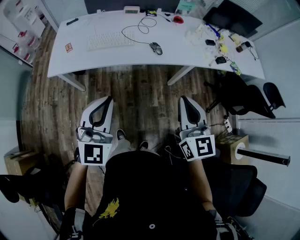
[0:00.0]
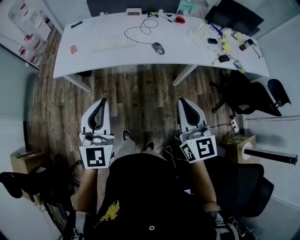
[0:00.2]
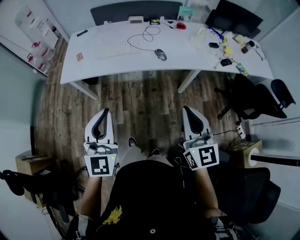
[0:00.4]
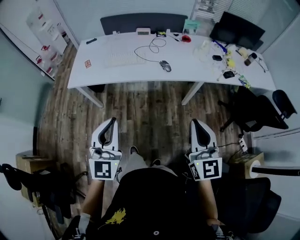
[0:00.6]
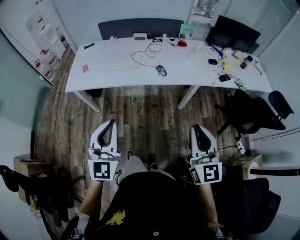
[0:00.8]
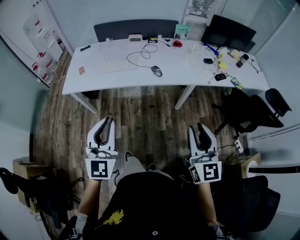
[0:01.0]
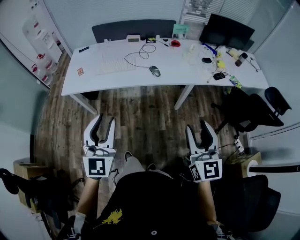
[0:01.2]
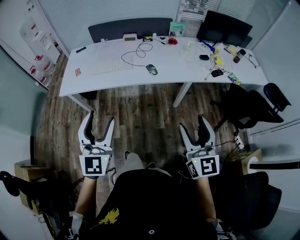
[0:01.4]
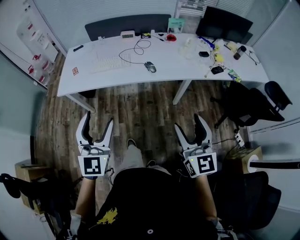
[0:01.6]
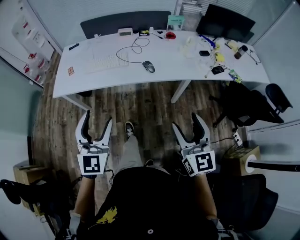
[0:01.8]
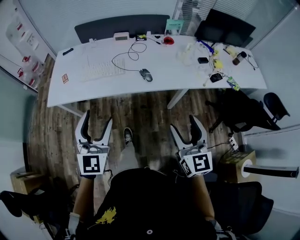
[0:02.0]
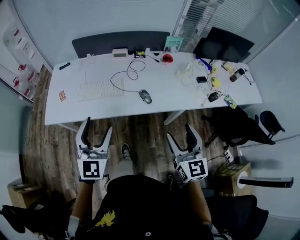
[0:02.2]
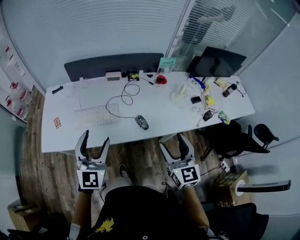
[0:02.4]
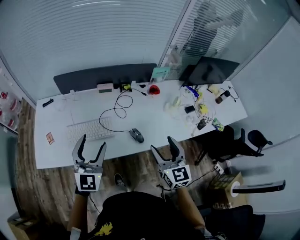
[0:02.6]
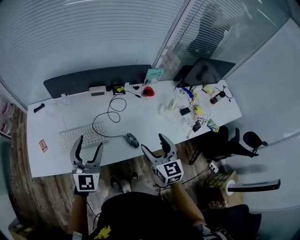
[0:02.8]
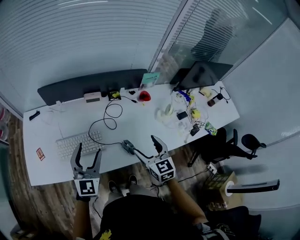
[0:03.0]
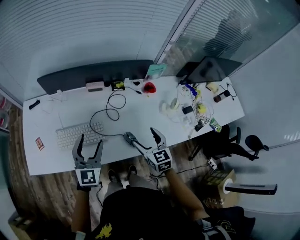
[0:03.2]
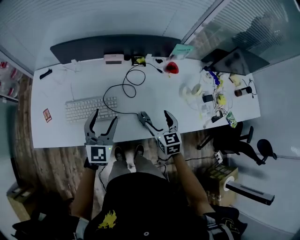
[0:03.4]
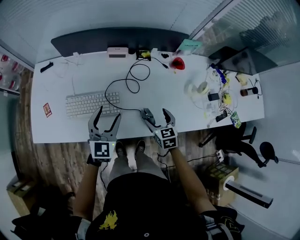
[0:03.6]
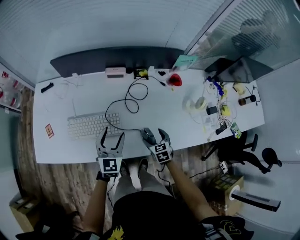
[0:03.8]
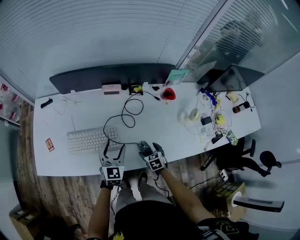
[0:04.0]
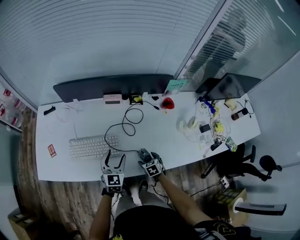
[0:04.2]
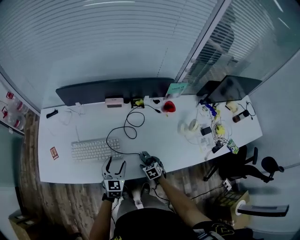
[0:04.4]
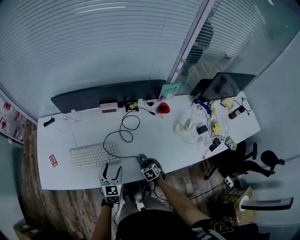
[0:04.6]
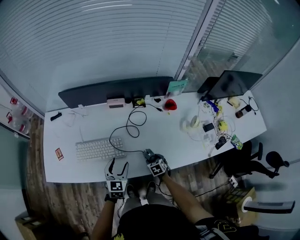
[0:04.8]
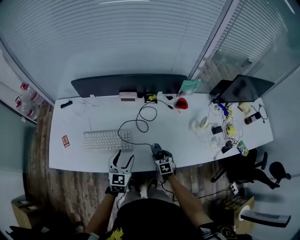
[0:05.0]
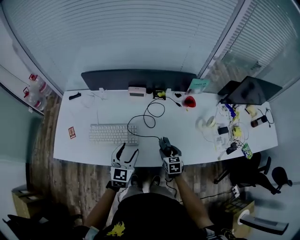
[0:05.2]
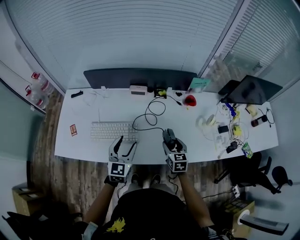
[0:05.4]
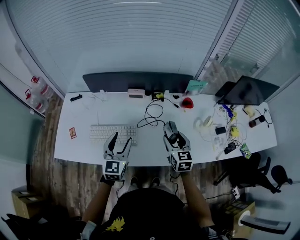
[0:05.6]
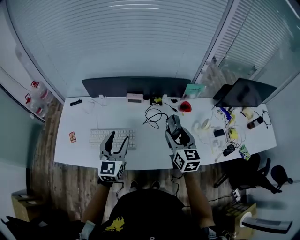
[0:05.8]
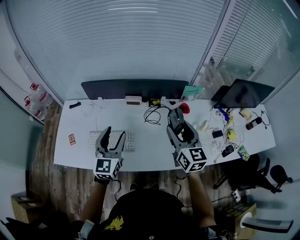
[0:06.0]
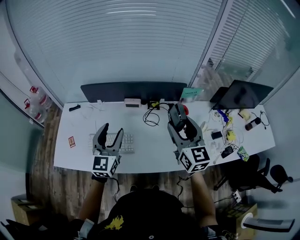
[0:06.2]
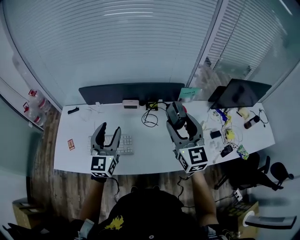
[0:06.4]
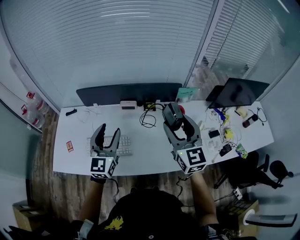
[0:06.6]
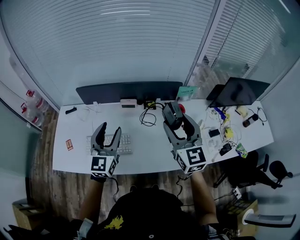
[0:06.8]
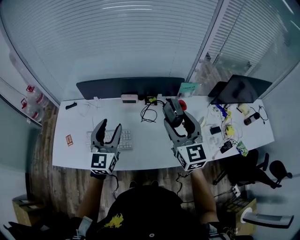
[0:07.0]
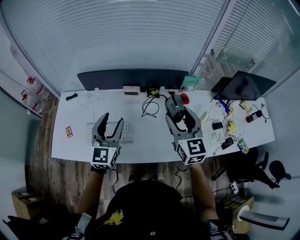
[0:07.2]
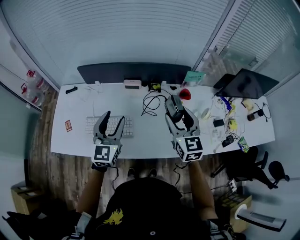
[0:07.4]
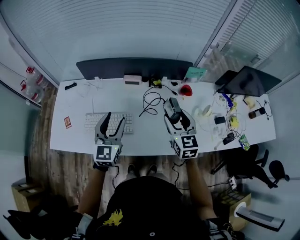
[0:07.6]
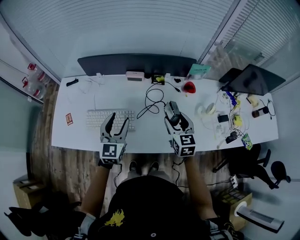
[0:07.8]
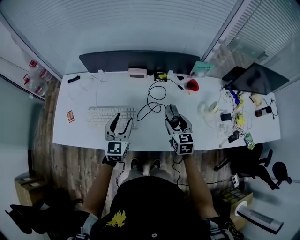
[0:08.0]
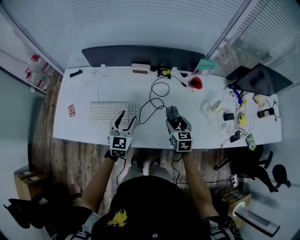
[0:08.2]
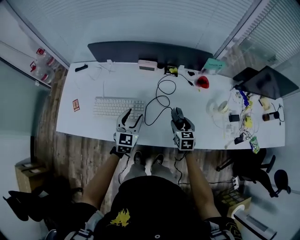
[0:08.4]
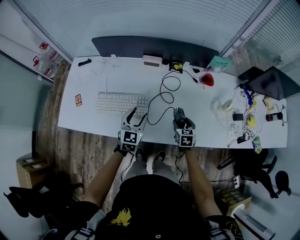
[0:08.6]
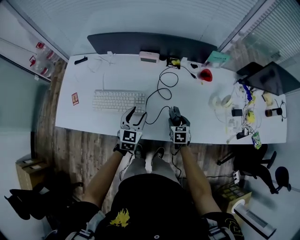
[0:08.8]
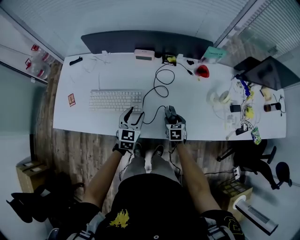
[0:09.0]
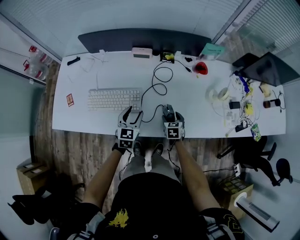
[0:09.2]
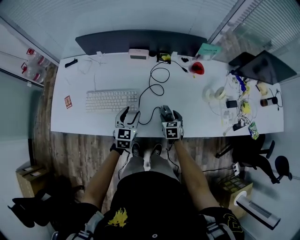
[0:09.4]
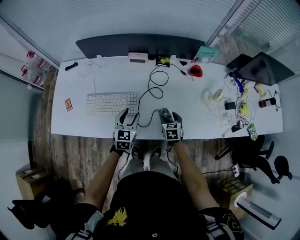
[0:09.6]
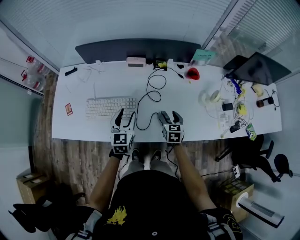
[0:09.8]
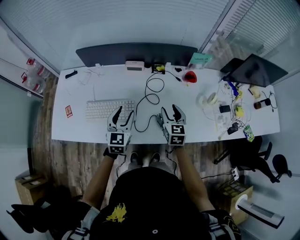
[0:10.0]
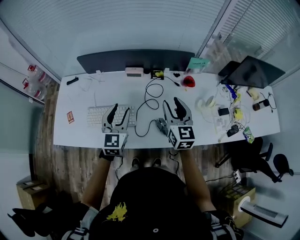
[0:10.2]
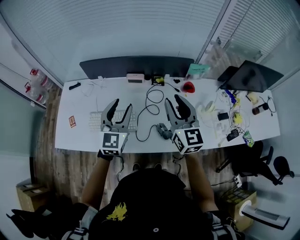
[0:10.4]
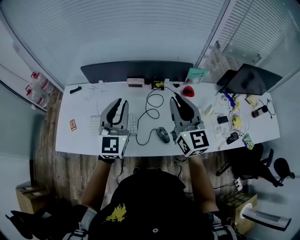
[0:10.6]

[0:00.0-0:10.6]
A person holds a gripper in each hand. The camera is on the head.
0:00.0 to 0:01.6: The left gripper travels to the right and backward by about 10 cm, and opens. Meanwhile the right gripper is displaced to the right and backward by roughly 15 cm, and opens.
0:01.6 to 0:03.0: The two grippers travel together, forward, approximately 60 cm. The right gripper turns by roughly 20 degrees.
0:03.0 to 0:04.6: The right gripper heads downward, covering about 35 cm, and tips its fingers downward by roughly 40 degrees. Meanwhile the left gripper is displaced downward by some 20 cm, and rotates approximately 20 degrees.
0:04.6 to 0:06.0: The left gripper goes about 25 cm upward, and rotates approximately 20 degrees. The right gripper moves upward, roughly 50 cm, and tips its fingers upward by some 50 degrees.
0:06.0 to 0:07.6: The left gripper travels downward by some 5 cm. The right gripper shifts about 10 cm downward.
0:07.6 to 0:09.0: The left gripper heads downward, covering about 20 cm; the right gripper shifts some 35 cm downward, and tips its fingers downward by about 30 degrees.
0:09.0 to 0:10.6: The right gripper moves upward, about 50 cm, tilts its fingers approximately 60 degrees upward, and closes; the left gripper shifts some 30 cm upward, rotates some 30 degrees, and closes.

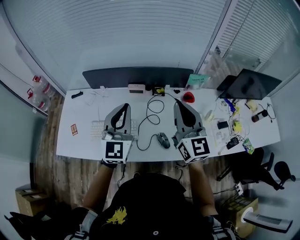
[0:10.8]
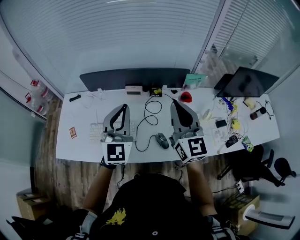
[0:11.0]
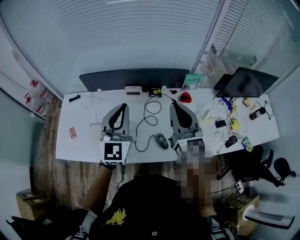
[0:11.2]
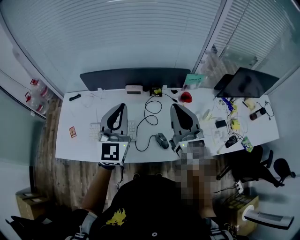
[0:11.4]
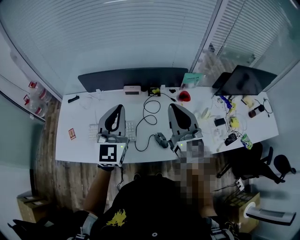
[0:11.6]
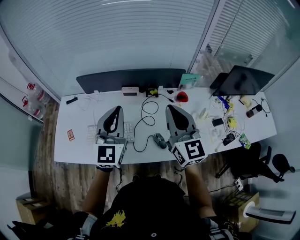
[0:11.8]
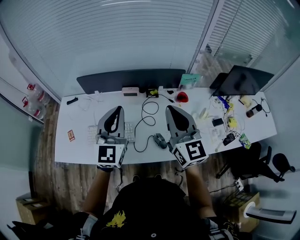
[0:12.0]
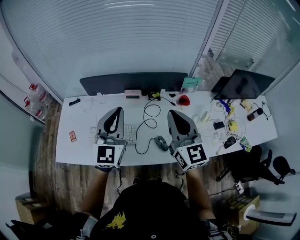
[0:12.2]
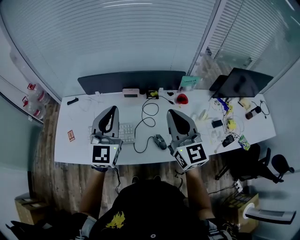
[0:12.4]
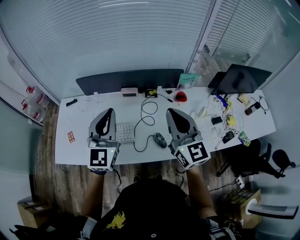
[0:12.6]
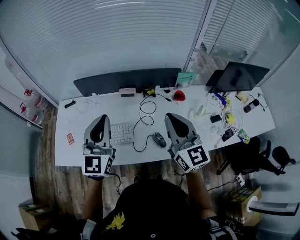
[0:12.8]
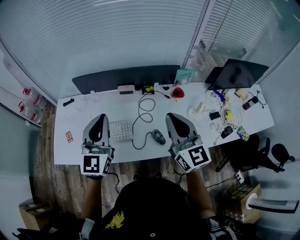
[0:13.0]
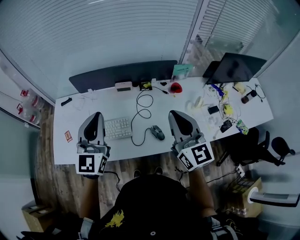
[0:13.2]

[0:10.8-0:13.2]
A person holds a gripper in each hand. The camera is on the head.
0:10.8 to 0:12.0: The grippers move only a little.
0:12.0 to 0:13.2: The right gripper moves about 5 cm. The left gripper goes about 5 cm to the left.

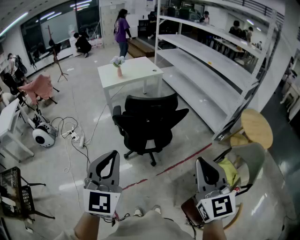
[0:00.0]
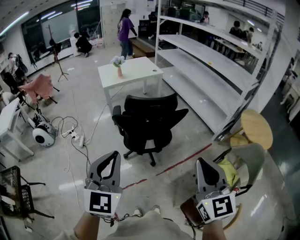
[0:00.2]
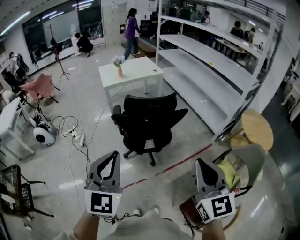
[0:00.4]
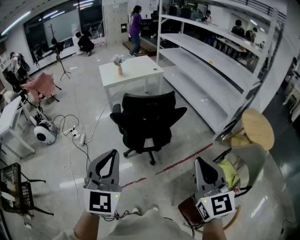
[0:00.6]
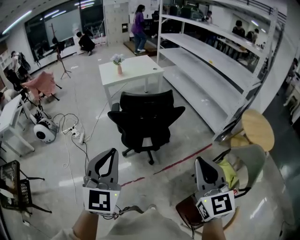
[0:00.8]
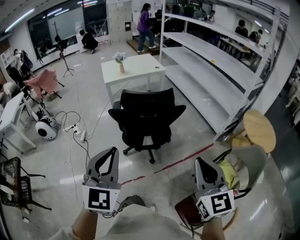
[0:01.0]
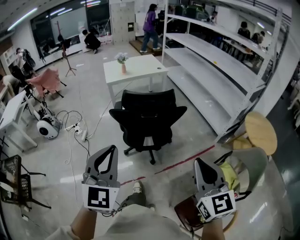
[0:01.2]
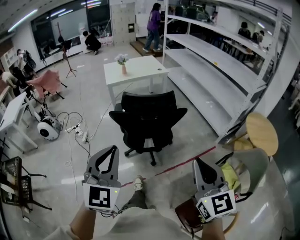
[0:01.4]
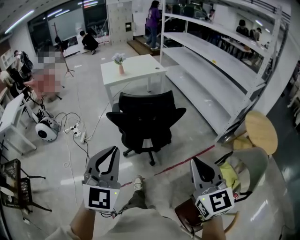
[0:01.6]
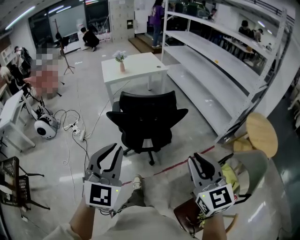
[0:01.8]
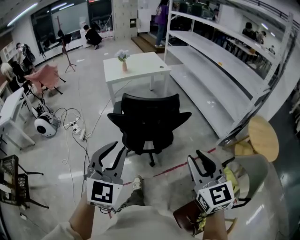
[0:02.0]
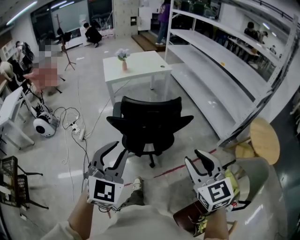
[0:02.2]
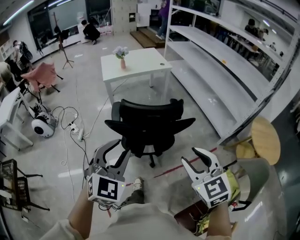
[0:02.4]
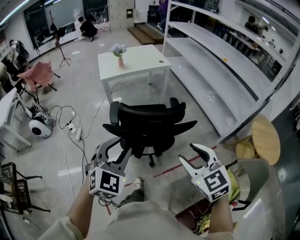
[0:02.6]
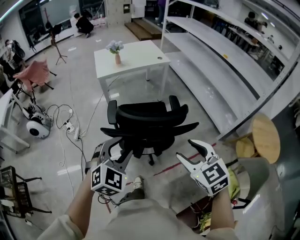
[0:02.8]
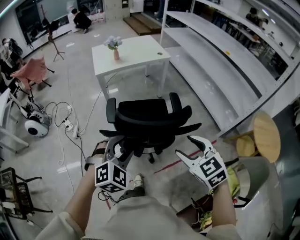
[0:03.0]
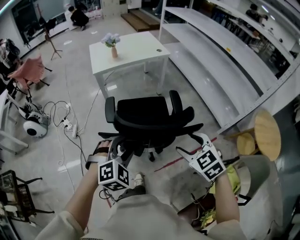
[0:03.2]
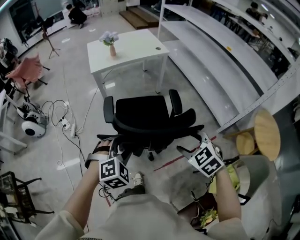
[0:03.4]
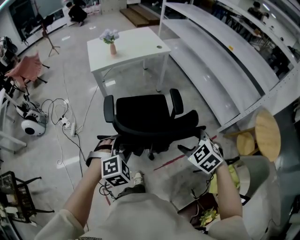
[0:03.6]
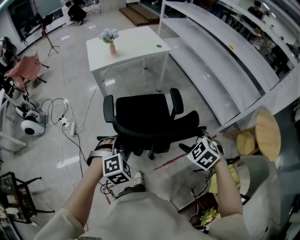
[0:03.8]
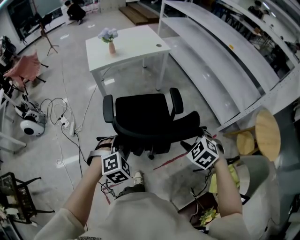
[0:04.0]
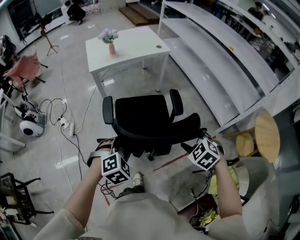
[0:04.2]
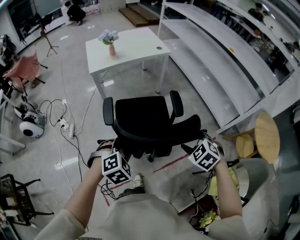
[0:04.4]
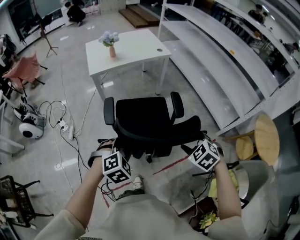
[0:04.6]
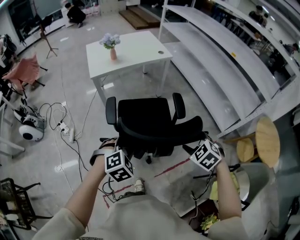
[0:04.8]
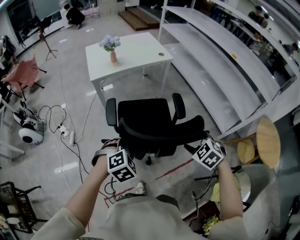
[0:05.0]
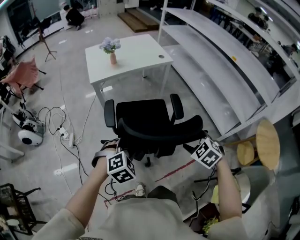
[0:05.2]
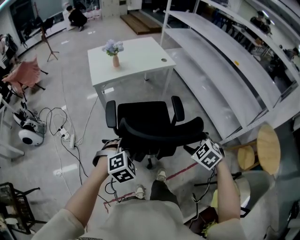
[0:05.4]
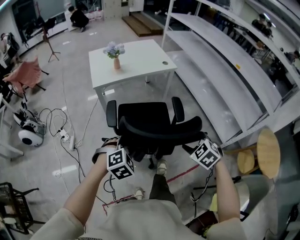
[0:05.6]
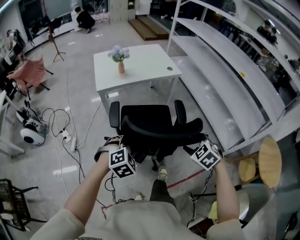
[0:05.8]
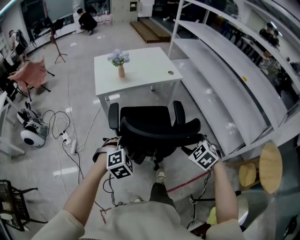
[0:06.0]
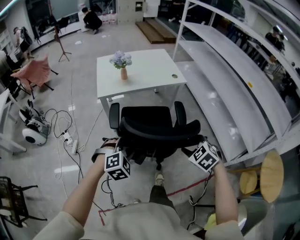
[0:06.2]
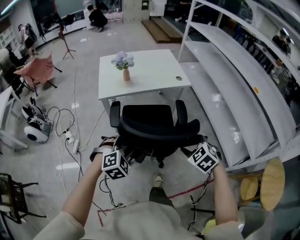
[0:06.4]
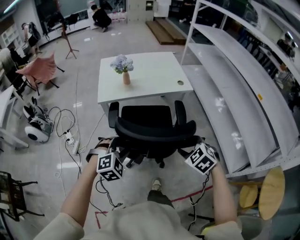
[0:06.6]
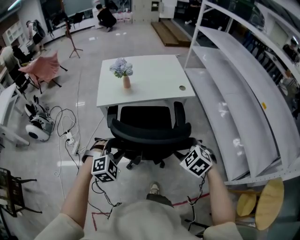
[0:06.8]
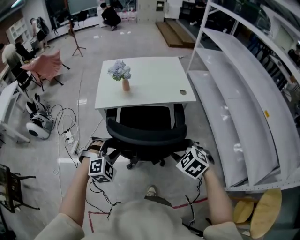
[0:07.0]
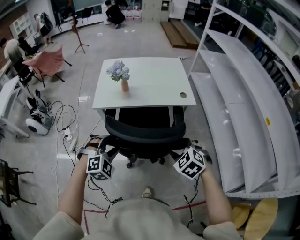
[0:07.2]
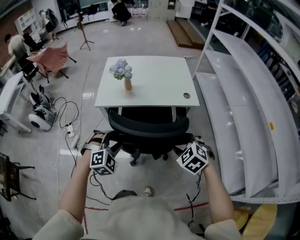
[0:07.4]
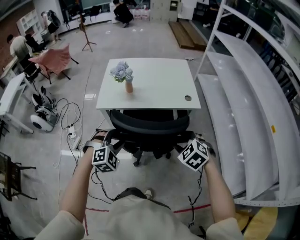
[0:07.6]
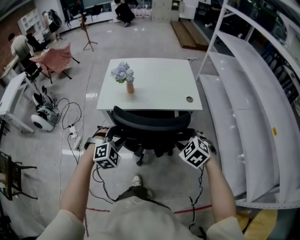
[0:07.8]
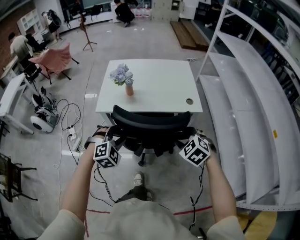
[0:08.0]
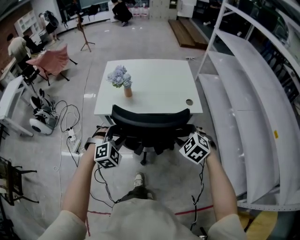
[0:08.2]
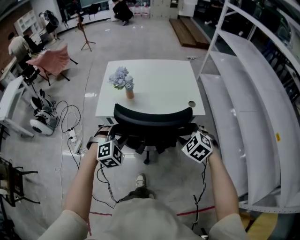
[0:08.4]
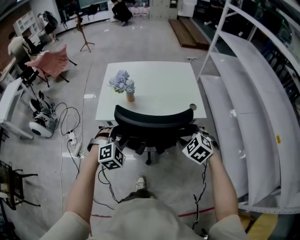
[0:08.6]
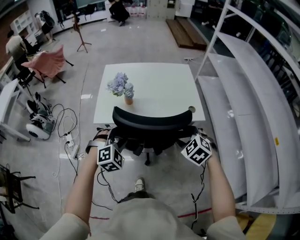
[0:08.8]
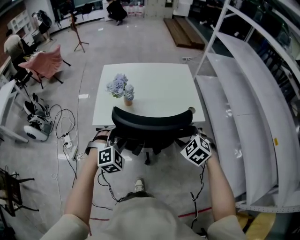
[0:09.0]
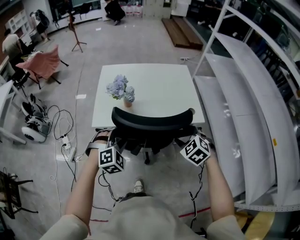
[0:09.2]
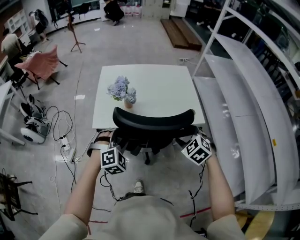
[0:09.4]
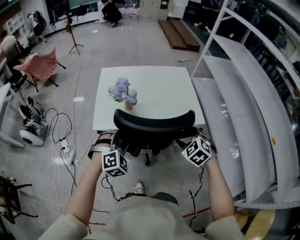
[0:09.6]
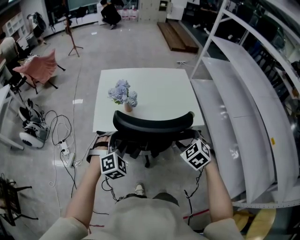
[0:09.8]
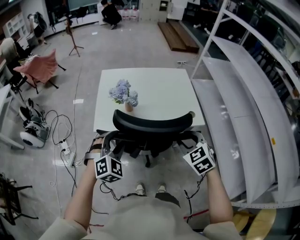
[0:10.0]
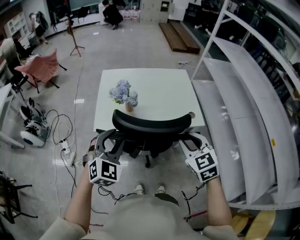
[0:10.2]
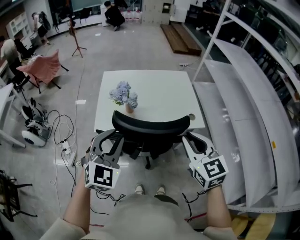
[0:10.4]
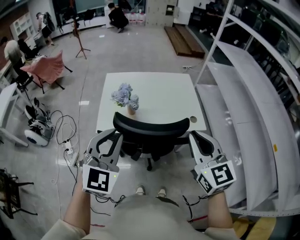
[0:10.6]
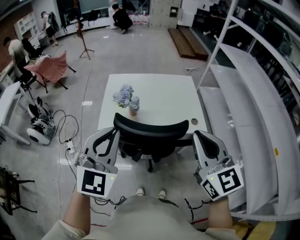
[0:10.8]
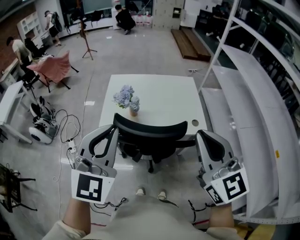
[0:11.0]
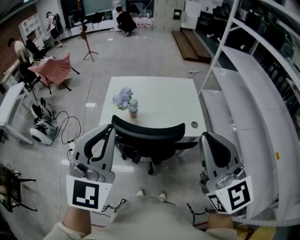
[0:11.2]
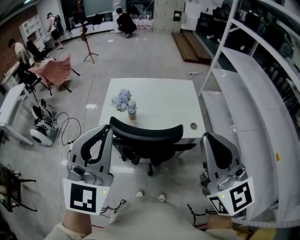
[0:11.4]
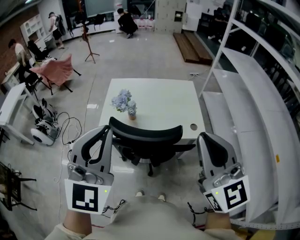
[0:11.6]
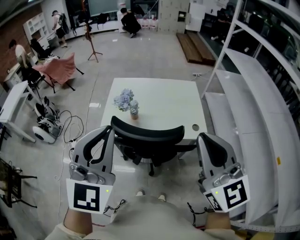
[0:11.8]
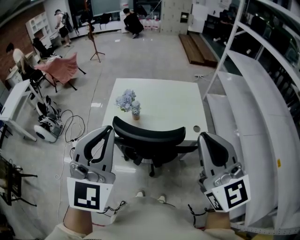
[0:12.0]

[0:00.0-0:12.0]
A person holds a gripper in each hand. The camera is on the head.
0:00.0 to 0:01.6: Both grippers travel together to the right, about 5 cm.
0:01.6 to 0:03.0: Both grippers travel together forward and downward, about 30 cm. The right gripper turns by approximately 30 degrees, and opens; the left gripper angles its fingers downward, by roughly 40 degrees, and opens.
0:03.0 to 0:04.4: The two grippers go roughly 15 cm downward and forward. The right gripper changes its angle by roughly 30 degrees.
0:04.4 to 0:06.0: Both grippers travel together forward, roughly 20 cm.
0:06.0 to 0:07.6: Both grippers move forward, approximately 30 cm. The right gripper changes its angle by roughly 20 degrees.
0:07.6 to 0:09.0: Both grippers travel together forward, approximately 15 cm.
0:09.0 to 0:10.4: The grippers both shift upward by roughly 15 cm. The left gripper rotates roughly 40 degrees, and closes. Meanwhile the right gripper tilts its fingers some 30 degrees upward, and closes its fingers.
0:10.4 to 0:12.0: The two grippers go about 15 cm upward. The left gripper changes its angle by about 20 degrees, and closes; the right gripper changes its angle by about 20 degrees.
